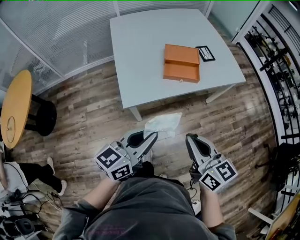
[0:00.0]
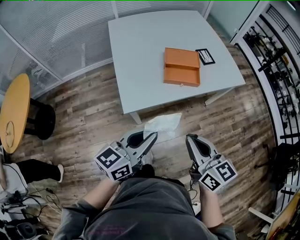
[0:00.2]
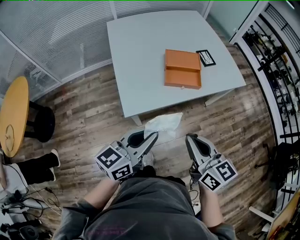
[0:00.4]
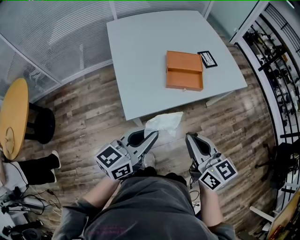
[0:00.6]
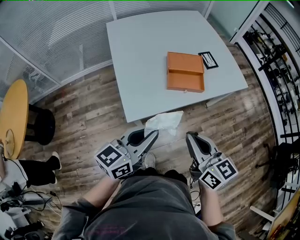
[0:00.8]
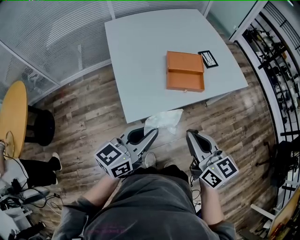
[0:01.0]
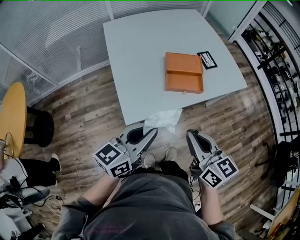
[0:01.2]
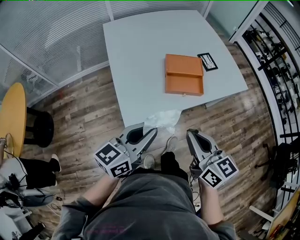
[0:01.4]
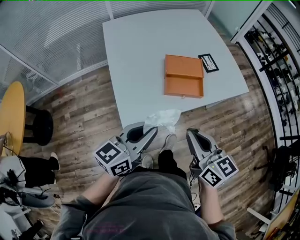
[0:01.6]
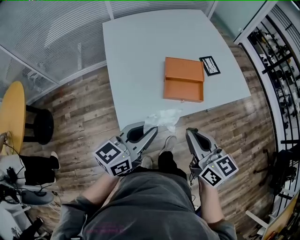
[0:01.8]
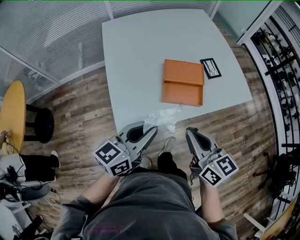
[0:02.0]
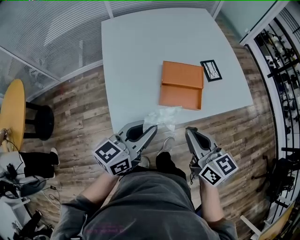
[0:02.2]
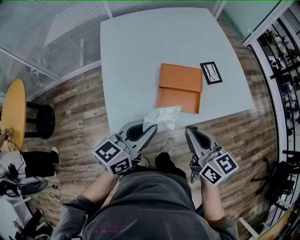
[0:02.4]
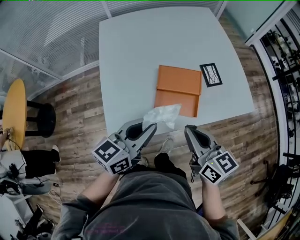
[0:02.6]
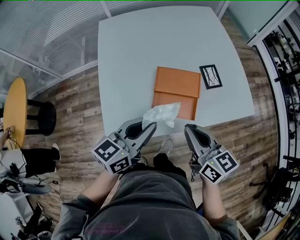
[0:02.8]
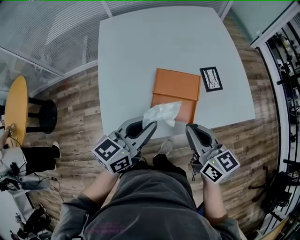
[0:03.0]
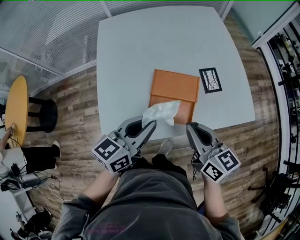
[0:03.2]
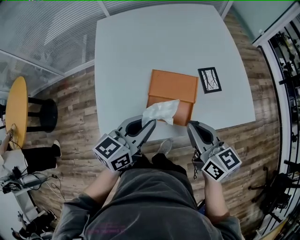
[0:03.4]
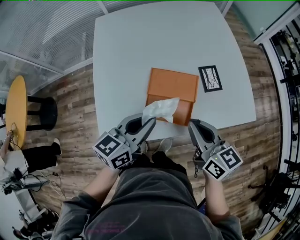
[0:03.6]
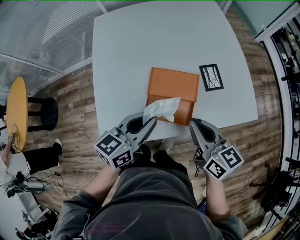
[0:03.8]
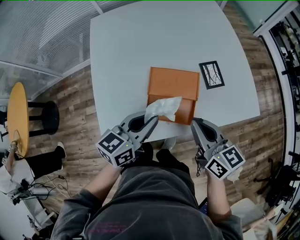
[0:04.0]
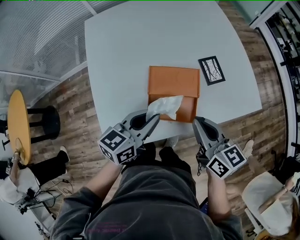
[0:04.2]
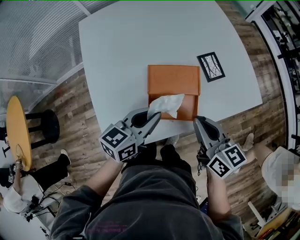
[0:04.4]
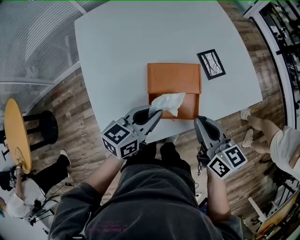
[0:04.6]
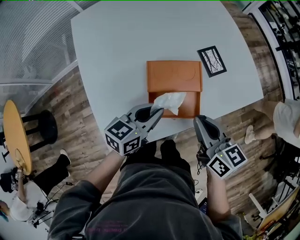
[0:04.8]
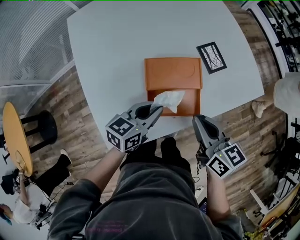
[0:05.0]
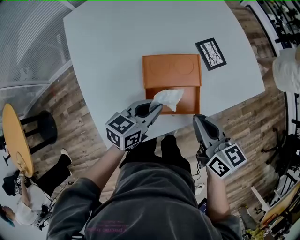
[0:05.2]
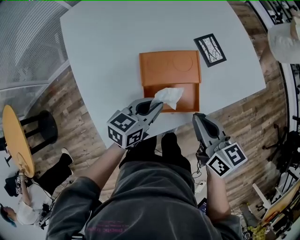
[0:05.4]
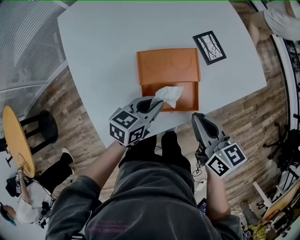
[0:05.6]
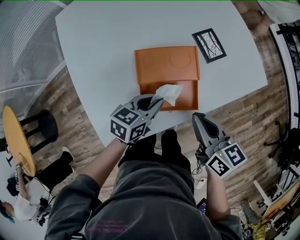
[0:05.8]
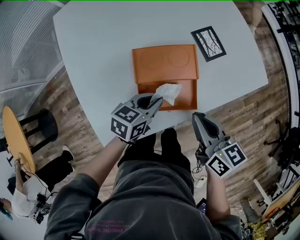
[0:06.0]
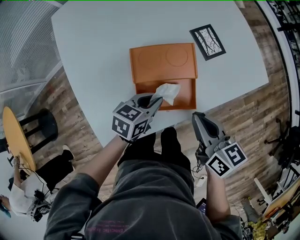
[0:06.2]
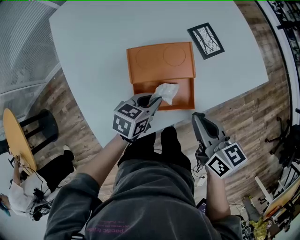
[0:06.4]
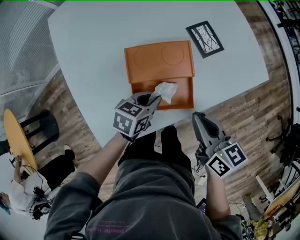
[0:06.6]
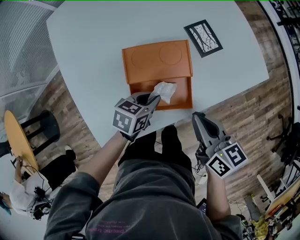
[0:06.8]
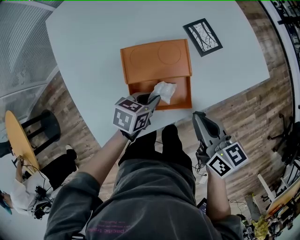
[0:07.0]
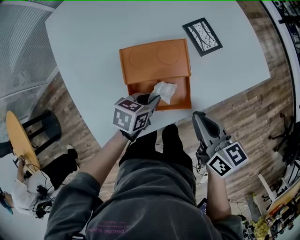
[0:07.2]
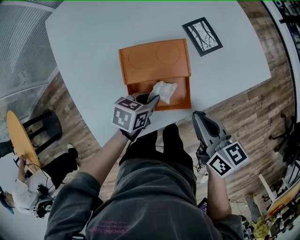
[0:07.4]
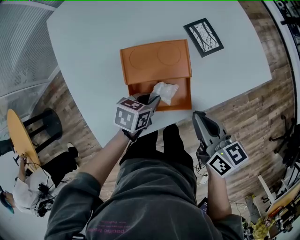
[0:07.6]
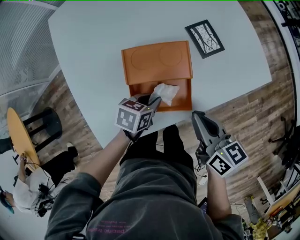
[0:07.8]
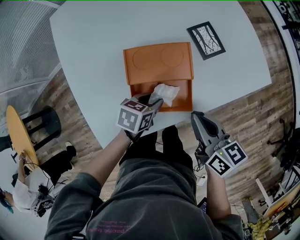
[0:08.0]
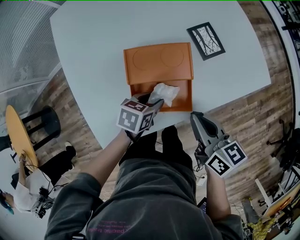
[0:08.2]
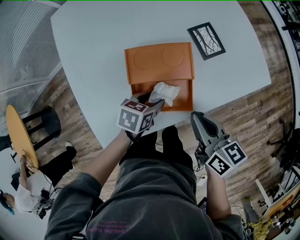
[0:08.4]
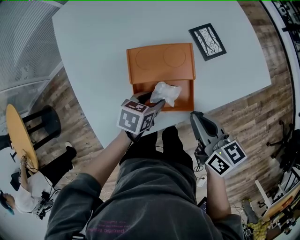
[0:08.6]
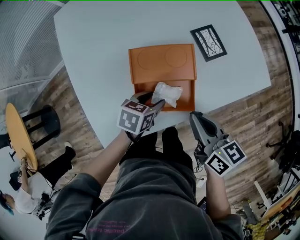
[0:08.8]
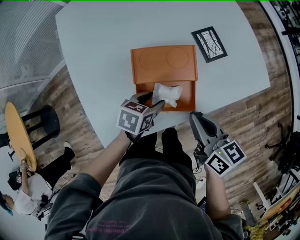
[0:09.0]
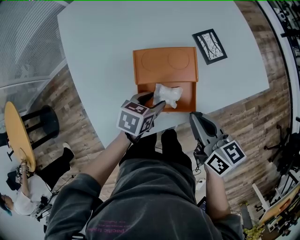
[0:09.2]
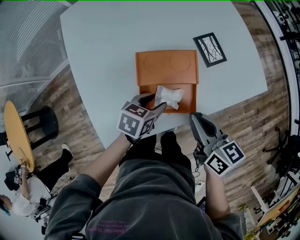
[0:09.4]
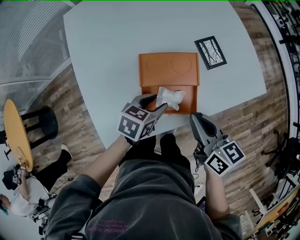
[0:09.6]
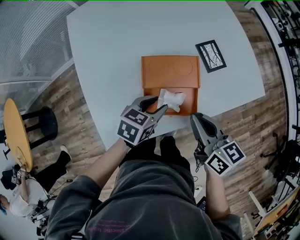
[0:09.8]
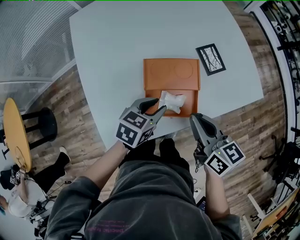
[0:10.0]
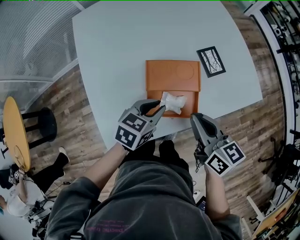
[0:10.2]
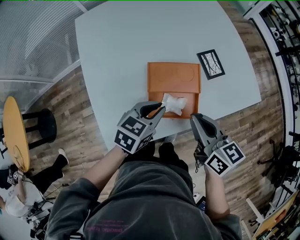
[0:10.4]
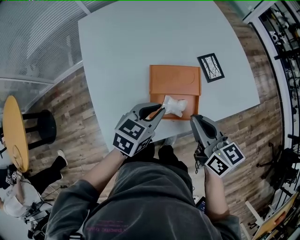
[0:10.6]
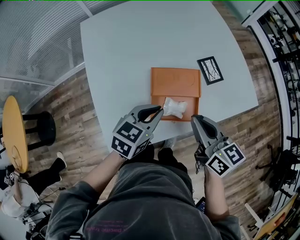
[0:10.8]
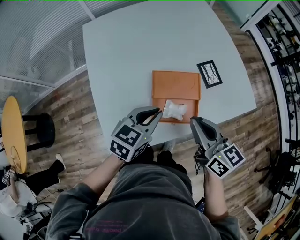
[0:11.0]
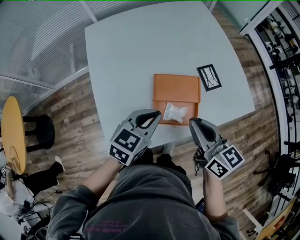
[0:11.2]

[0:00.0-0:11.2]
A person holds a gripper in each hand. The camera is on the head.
0:00.0 to 0:01.6: Both grippers travel together forward, roughly 15 cm.
0:01.6 to 0:03.2: The grippers both shift forward and to the right by some 25 cm.
0:03.2 to 0:04.8: The right gripper moves downward, about 5 cm, while the left gripper is displaced downward and forward by about 15 cm.
0:04.8 to 0:06.4: The left gripper moves downward, some 10 cm, and changes its angle by roughly 20 degrees. Meanwhile the right gripper shifts about 5 cm downward.
0:06.4 to 0:08.0: The grippers make only small movements.
0:08.0 to 0:09.6: The right gripper ends up about 5 cm from where it was; the left gripper heads upward, covering approximately 5 cm.
0:09.6 to 0:11.2: The right gripper shifts roughly 10 cm upward and to the left. The left gripper travels upward by about 15 cm, rotates approximately 20 degrees, and closes its fingers.

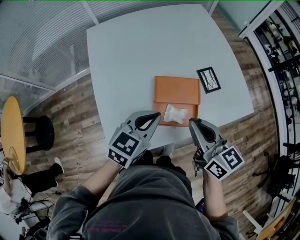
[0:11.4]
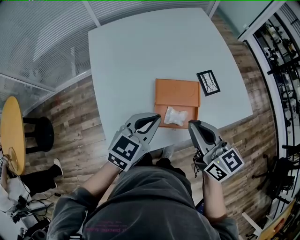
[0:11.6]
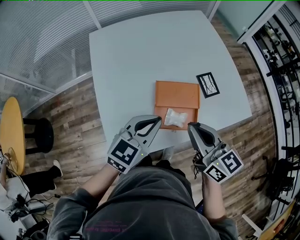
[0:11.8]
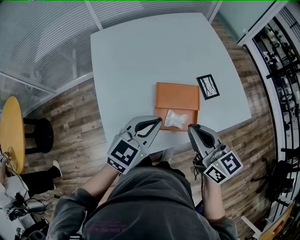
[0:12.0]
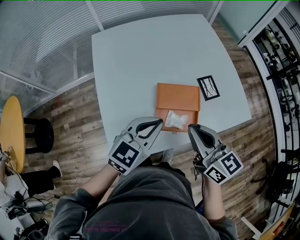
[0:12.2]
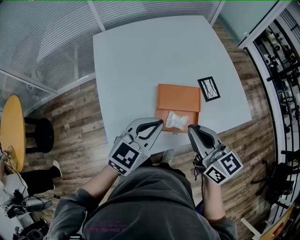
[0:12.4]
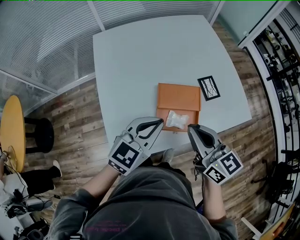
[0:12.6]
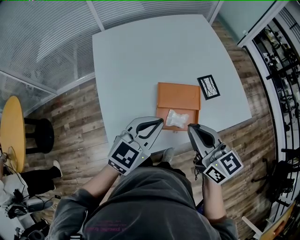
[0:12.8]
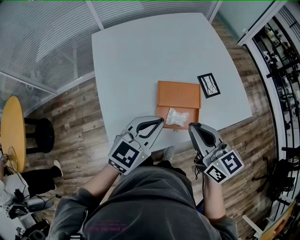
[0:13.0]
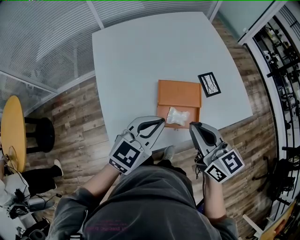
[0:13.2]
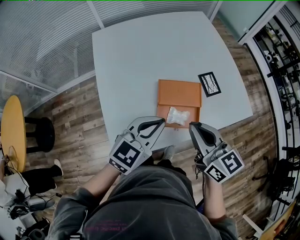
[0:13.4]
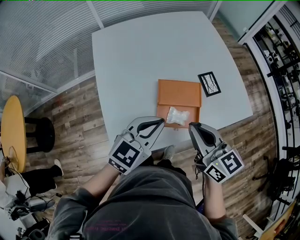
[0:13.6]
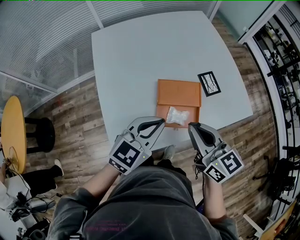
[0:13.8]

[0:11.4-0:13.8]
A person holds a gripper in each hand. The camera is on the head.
0:11.4 to 0:12.6: The left gripper ends up approximately 5 cm from where it was.
0:12.6 to 0:13.8: The grippers move only a little.

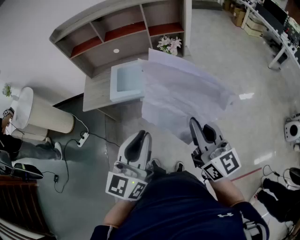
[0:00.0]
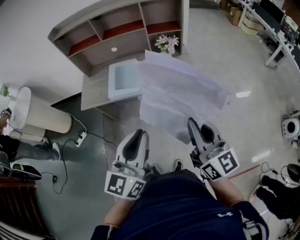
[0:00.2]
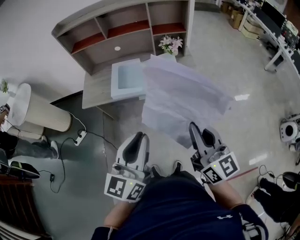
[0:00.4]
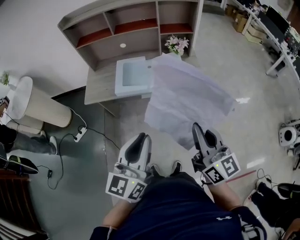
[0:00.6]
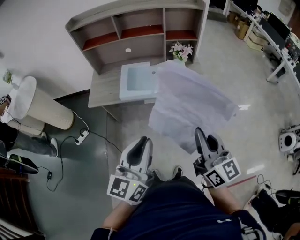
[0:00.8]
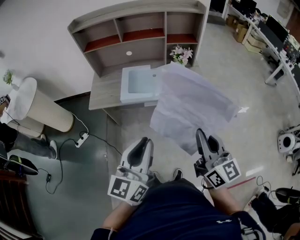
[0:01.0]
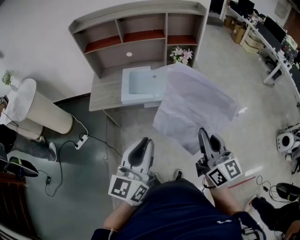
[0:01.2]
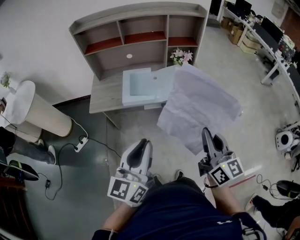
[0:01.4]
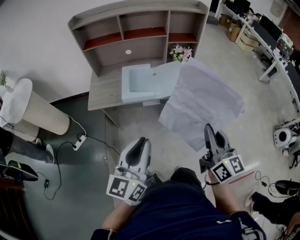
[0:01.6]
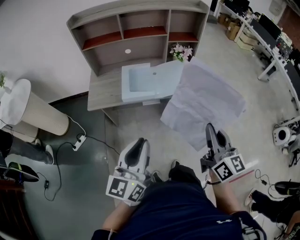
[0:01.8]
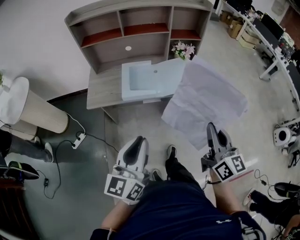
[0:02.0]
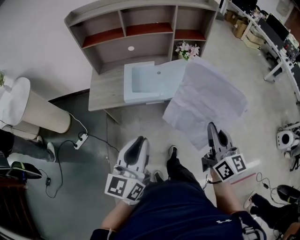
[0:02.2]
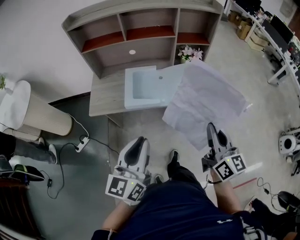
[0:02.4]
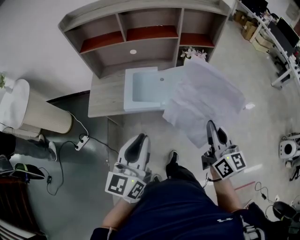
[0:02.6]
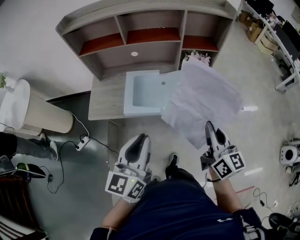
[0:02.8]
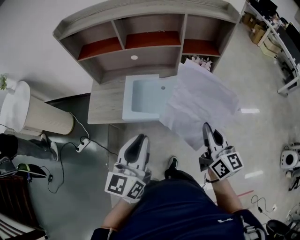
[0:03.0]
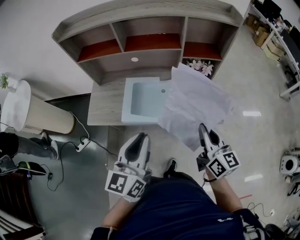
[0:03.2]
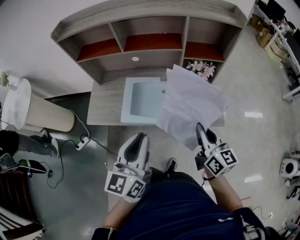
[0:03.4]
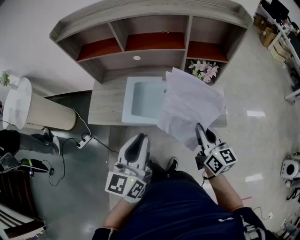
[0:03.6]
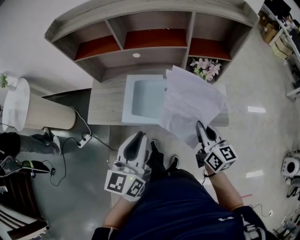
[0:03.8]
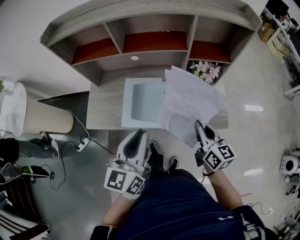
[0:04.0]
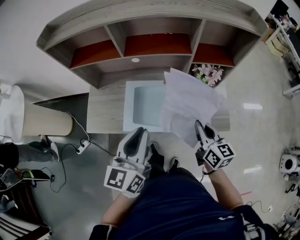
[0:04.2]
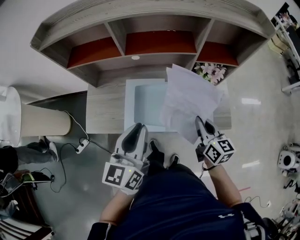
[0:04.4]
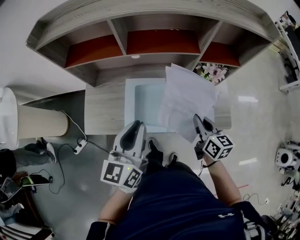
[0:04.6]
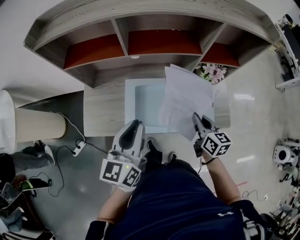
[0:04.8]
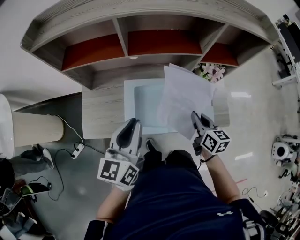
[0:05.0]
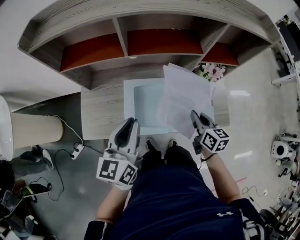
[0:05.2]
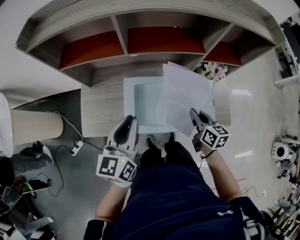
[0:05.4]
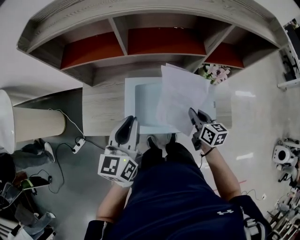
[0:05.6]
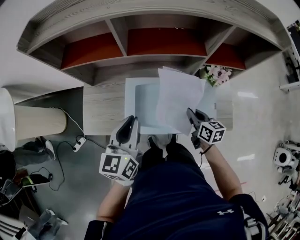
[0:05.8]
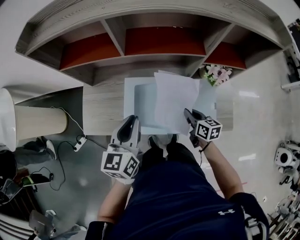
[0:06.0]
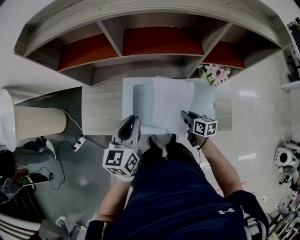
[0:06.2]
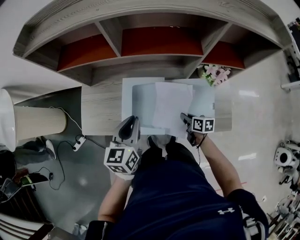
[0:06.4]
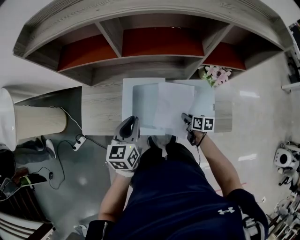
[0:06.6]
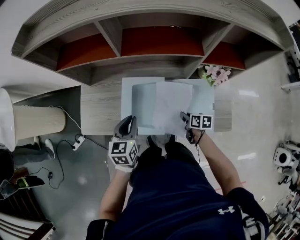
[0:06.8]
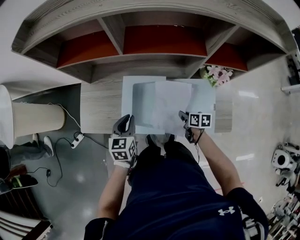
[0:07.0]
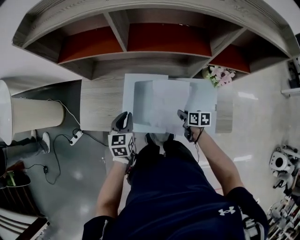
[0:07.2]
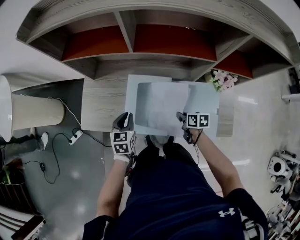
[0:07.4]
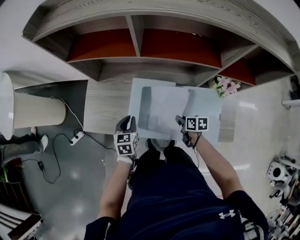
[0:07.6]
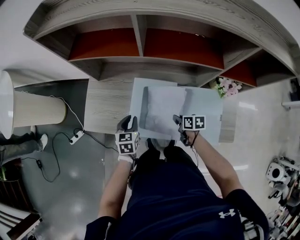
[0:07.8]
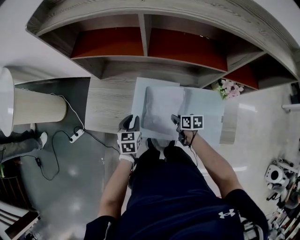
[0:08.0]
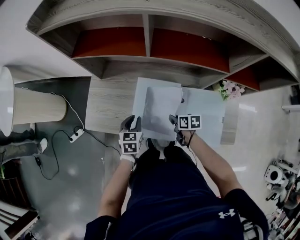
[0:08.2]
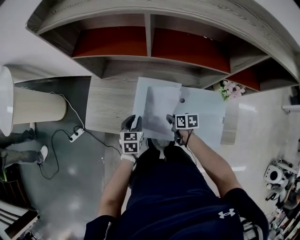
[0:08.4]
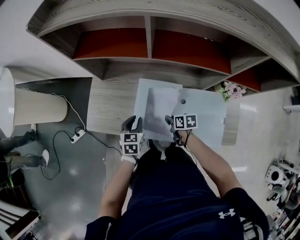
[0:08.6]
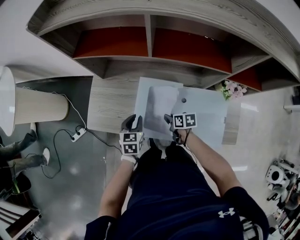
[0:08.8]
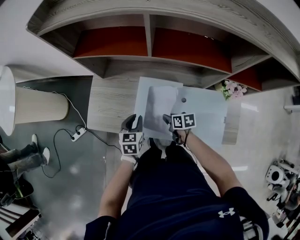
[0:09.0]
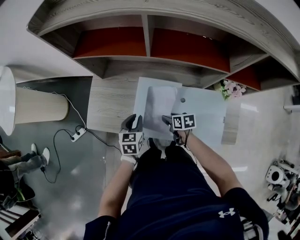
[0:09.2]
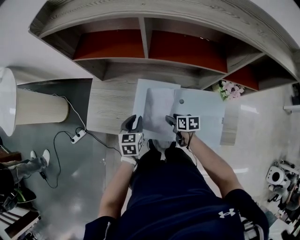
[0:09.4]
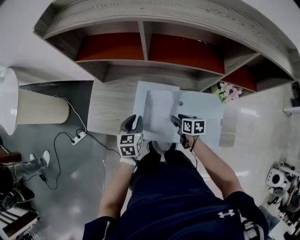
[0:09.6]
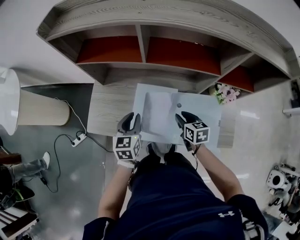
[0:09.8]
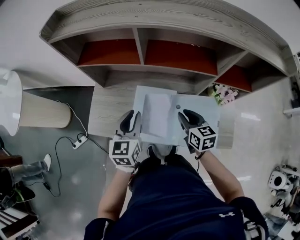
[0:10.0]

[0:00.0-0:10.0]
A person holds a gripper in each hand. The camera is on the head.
0:00.0 to 0:01.4: The right gripper moves to the left, approximately 10 cm, while the left gripper shifts some 15 cm to the left.
0:01.4 to 0:02.8: Both grippers travel together forward, roughly 20 cm.
0:02.8 to 0:04.2: The right gripper moves forward and downward, approximately 20 cm; the left gripper is displaced forward by approximately 20 cm.
0:04.2 to 0:05.8: The right gripper is displaced downward and forward by roughly 15 cm, while the left gripper is displaced forward, to the left and downward by approximately 15 cm.
0:05.8 to 0:07.2: The two grippers go some 15 cm downward. The right gripper swivels approximately 30 degrees, while the left gripper turns by about 20 degrees.
0:07.2 to 0:08.6: The left gripper goes some 5 cm downward; the right gripper shifts approximately 15 cm to the left and forward.
0:08.6 to 0:10.0: The two grippers go roughly 20 cm upward. The right gripper rotates some 40 degrees, and opens its fingers; the left gripper rotates roughly 20 degrees.
